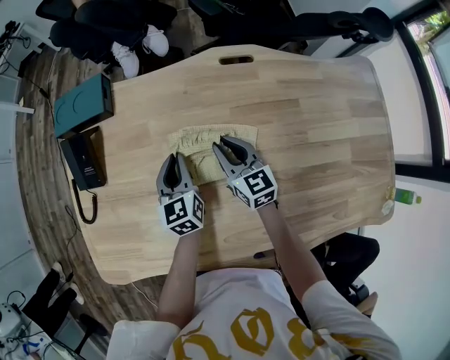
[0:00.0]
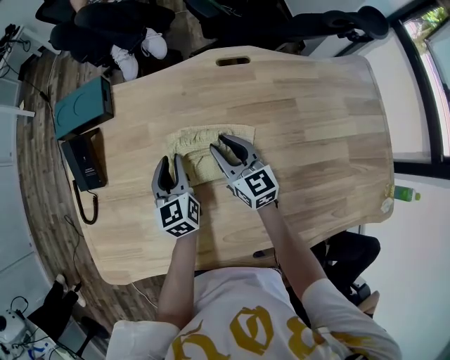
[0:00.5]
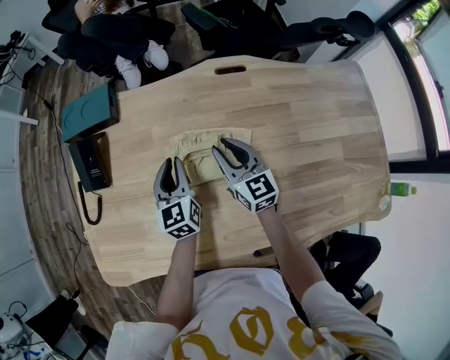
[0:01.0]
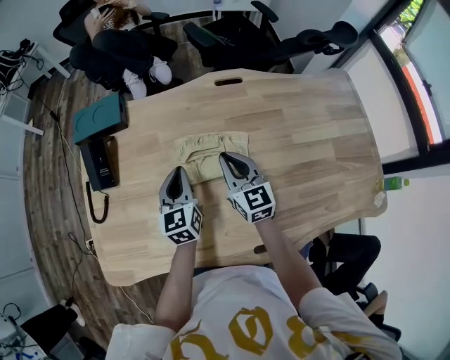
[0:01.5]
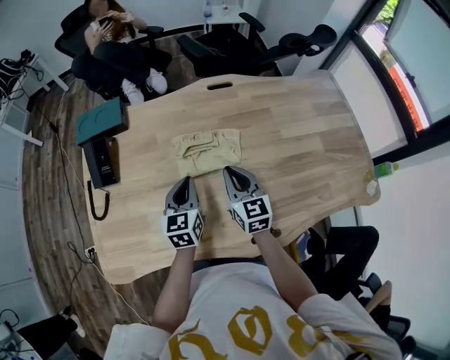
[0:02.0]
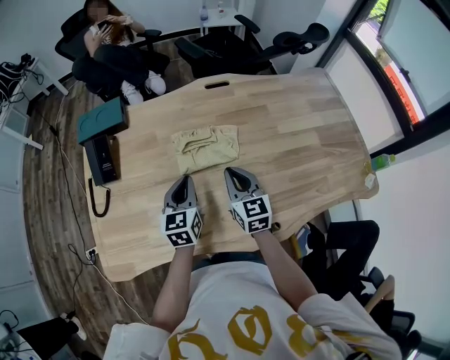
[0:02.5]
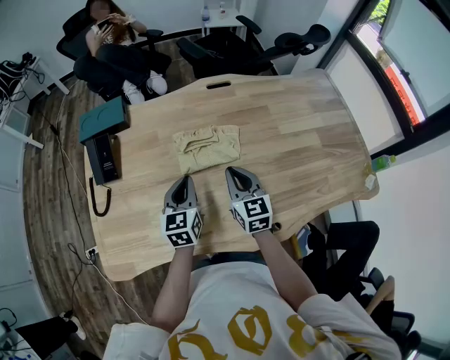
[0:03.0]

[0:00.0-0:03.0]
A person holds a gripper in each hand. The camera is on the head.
0.0 to 1.5 s: The right gripper shifts some 10 cm upward and backward, while the left gripper travels upward by about 5 cm, and opens, then closes again.
1.5 to 3.0 s: The grippers both shift backward by about 10 cm.

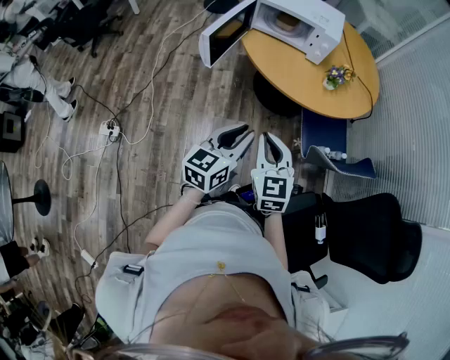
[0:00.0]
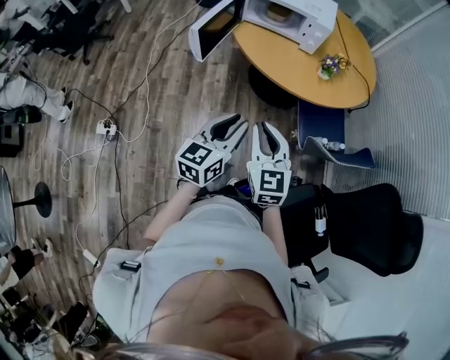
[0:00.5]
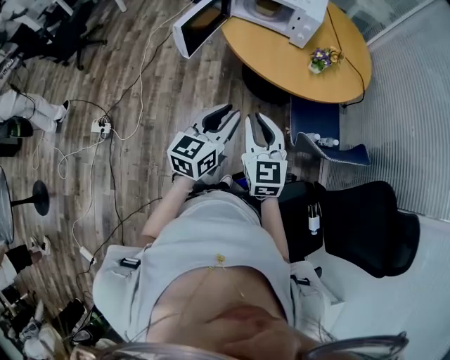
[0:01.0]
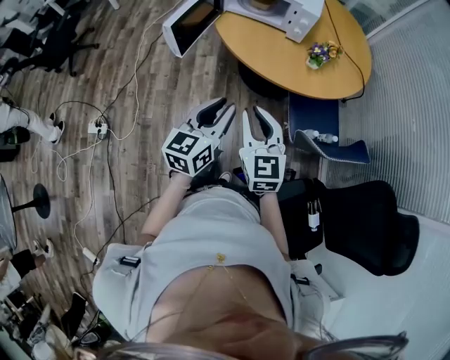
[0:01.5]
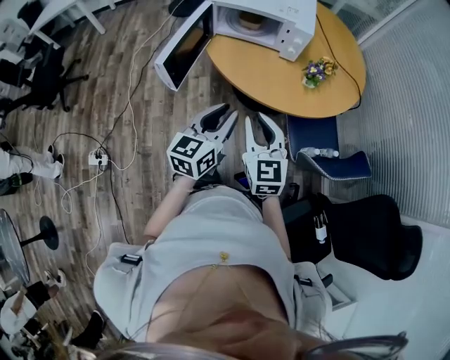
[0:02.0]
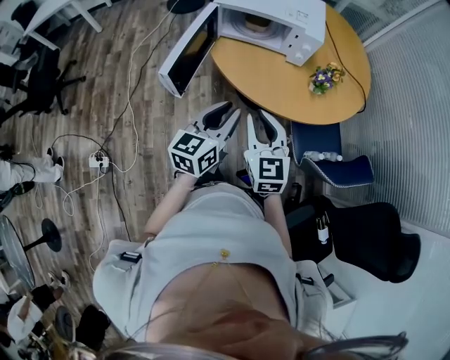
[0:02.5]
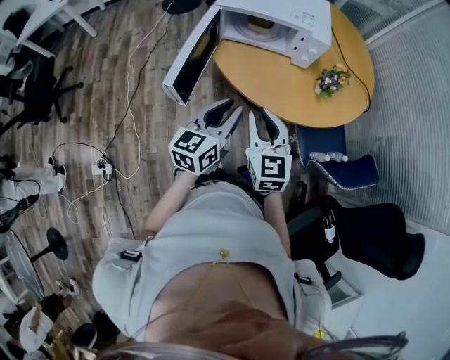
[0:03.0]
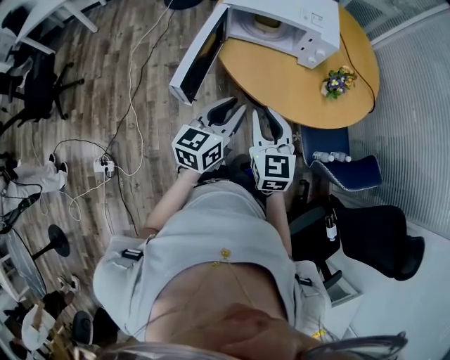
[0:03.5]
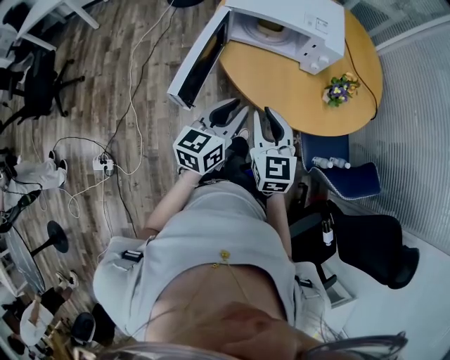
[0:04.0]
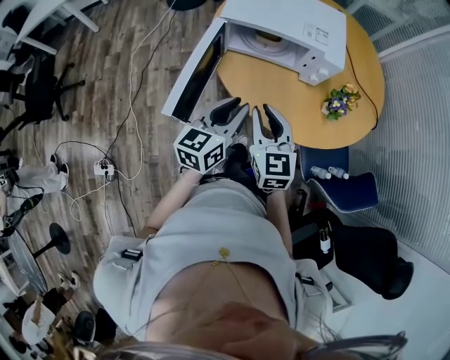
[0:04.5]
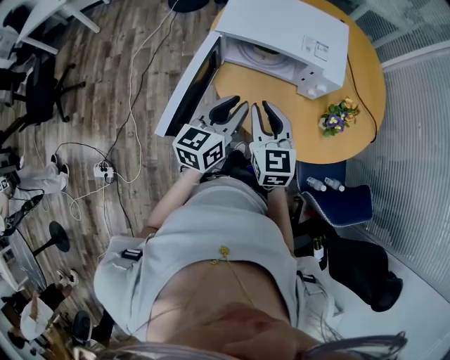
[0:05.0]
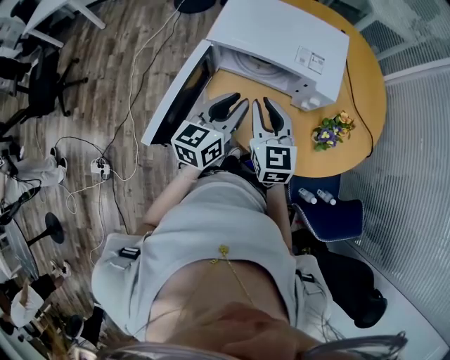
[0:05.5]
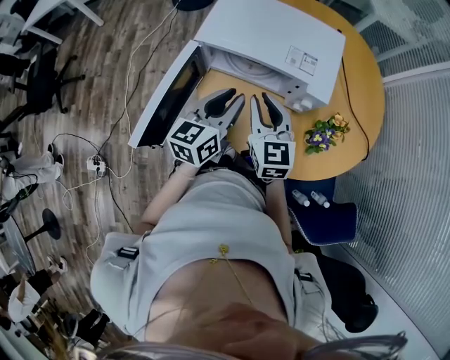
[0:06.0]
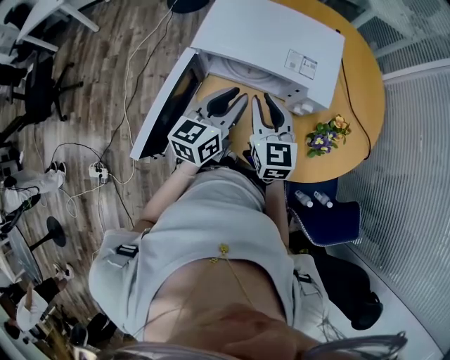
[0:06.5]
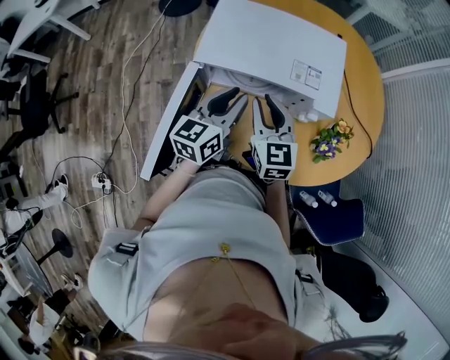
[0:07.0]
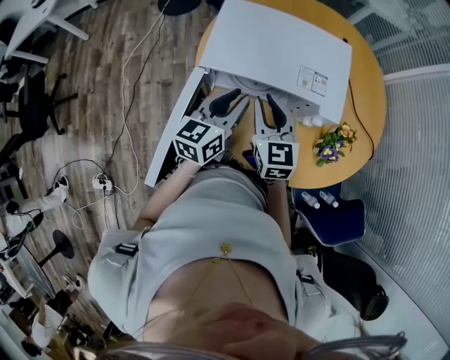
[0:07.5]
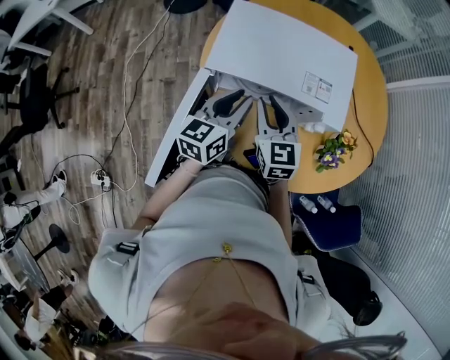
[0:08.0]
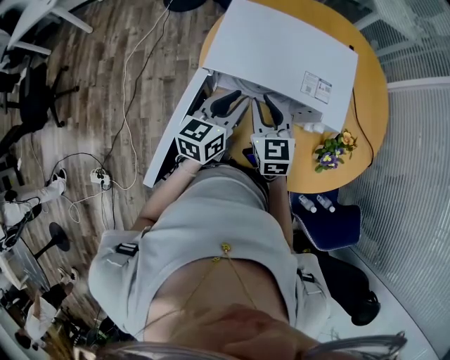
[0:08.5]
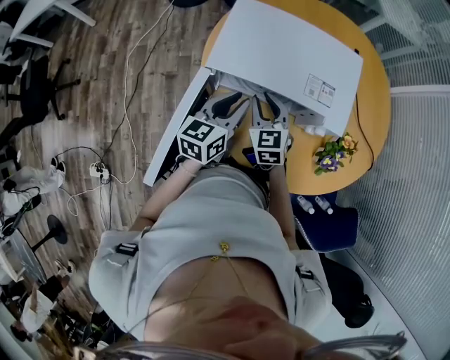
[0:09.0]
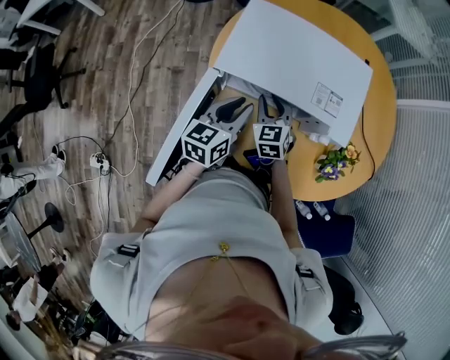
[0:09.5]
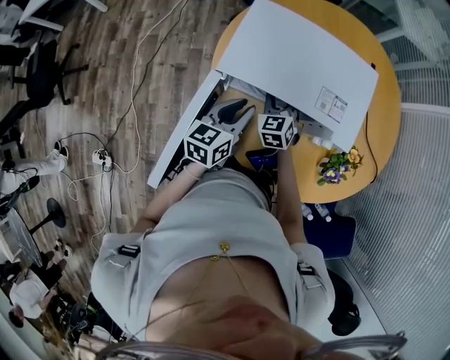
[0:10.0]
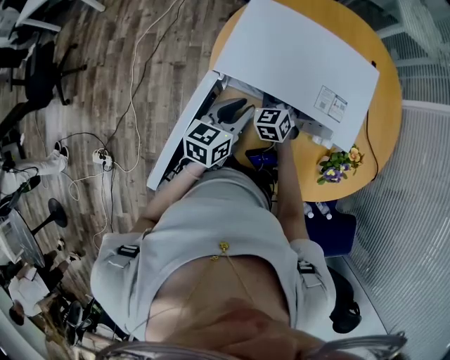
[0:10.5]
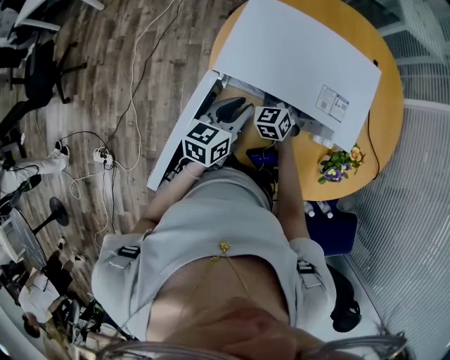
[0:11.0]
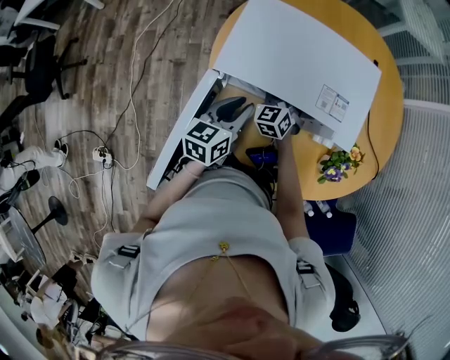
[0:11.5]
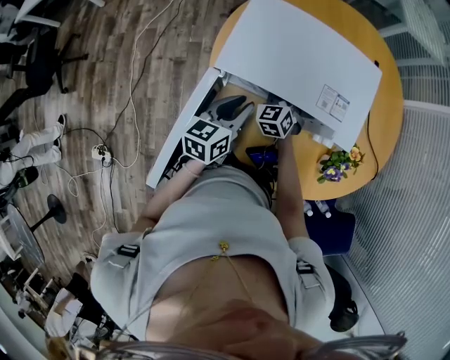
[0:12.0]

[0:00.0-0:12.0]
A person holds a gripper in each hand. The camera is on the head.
0.0 to 2.0 s: The two grippers go some 15 cm forward.
2.0 to 4.0 s: The grippers both shift forward and to the left by roughly 15 cm.
4.0 to 6.0 s: The two grippers go about 20 cm forward.
6.0 to 8.0 s: The grippers both shift forward by approximately 10 cm.
8.0 to 10.0 s: The left gripper is displaced downward by some 5 cm; the right gripper is displaced downward and forward by roughly 15 cm, and rotates approximately 20 degrees.
10.0 to 12.0 s: The right gripper closes its fingers.

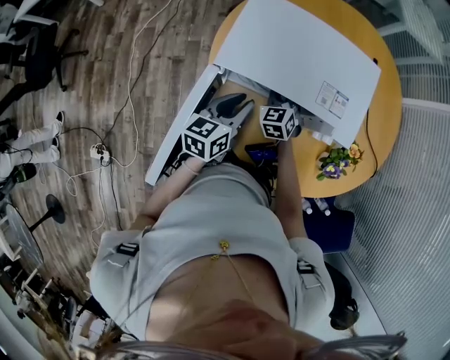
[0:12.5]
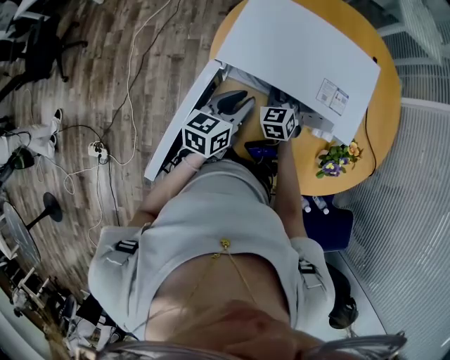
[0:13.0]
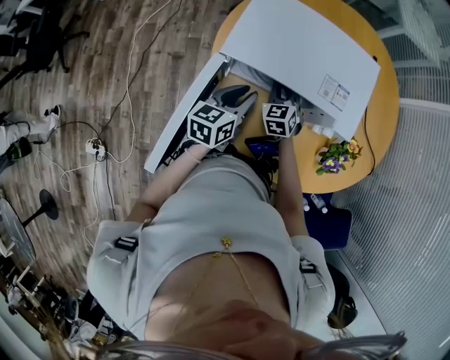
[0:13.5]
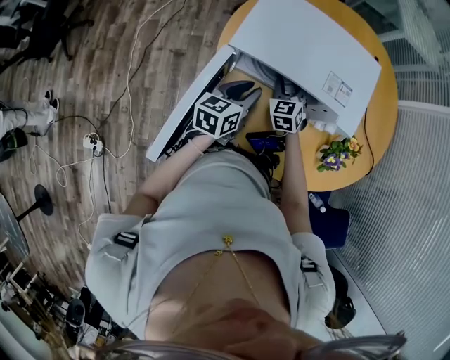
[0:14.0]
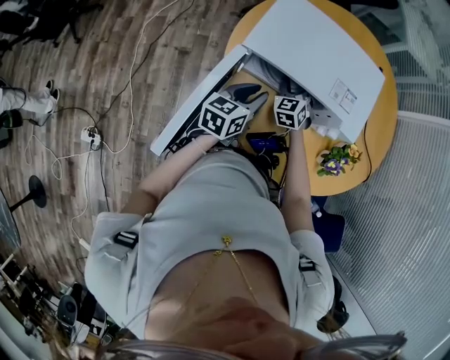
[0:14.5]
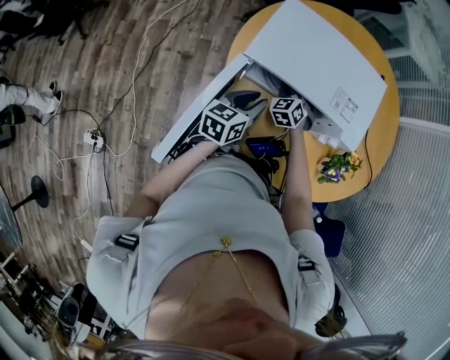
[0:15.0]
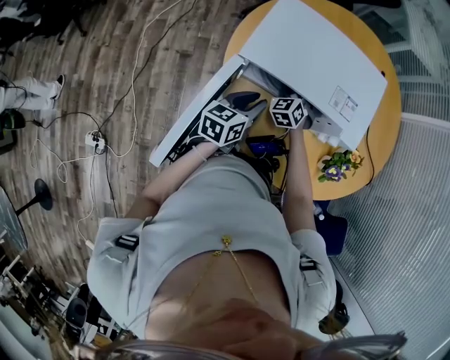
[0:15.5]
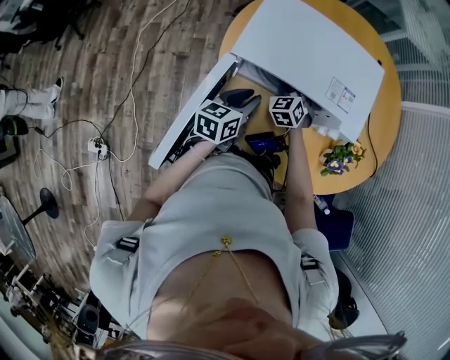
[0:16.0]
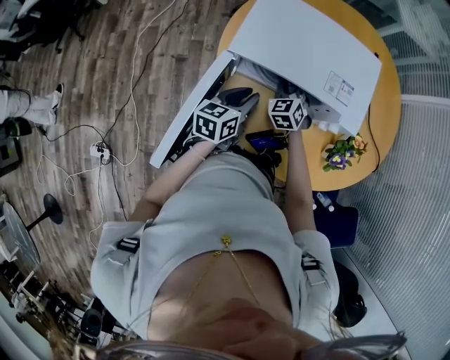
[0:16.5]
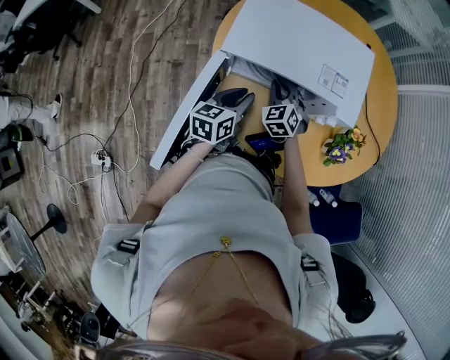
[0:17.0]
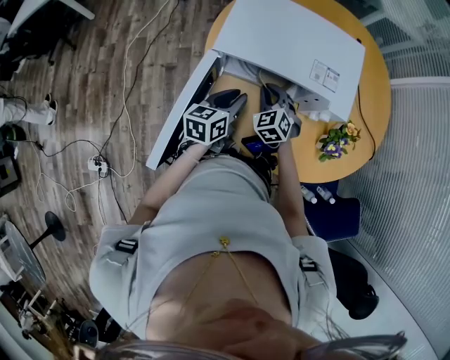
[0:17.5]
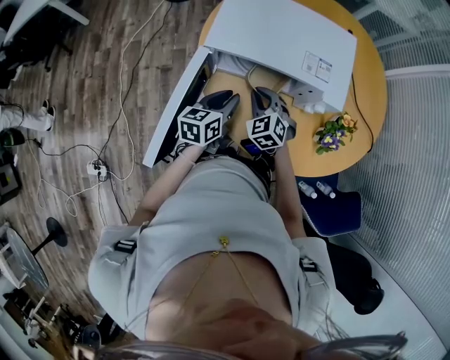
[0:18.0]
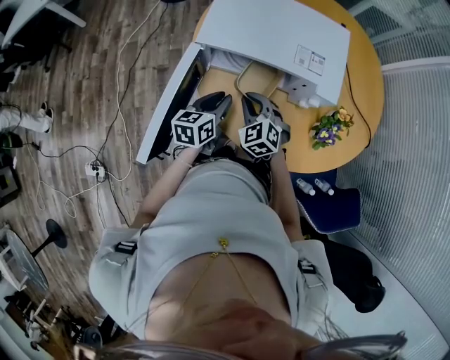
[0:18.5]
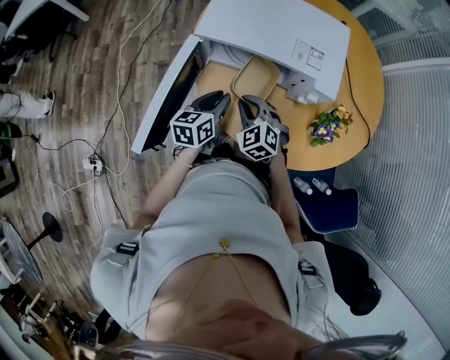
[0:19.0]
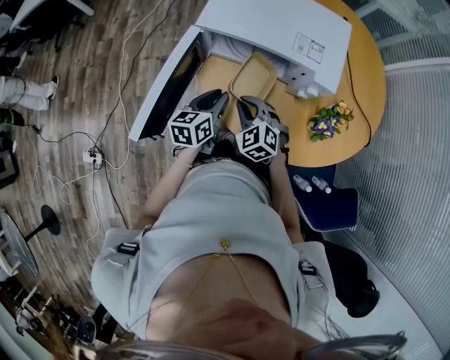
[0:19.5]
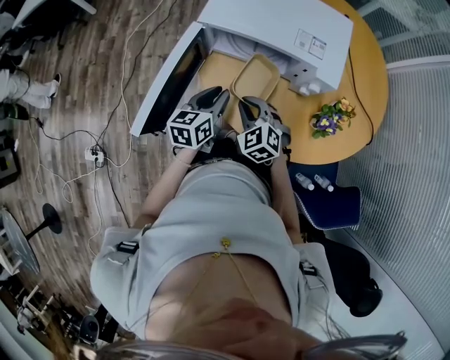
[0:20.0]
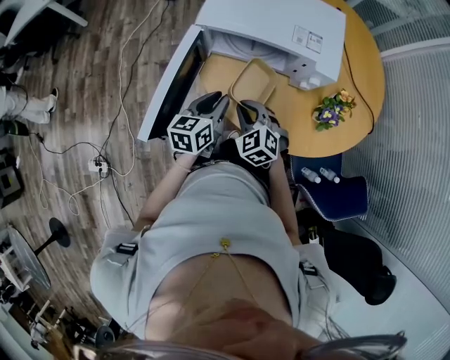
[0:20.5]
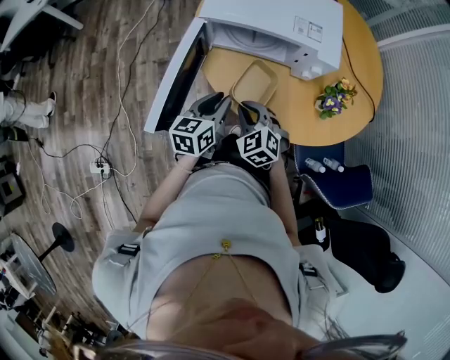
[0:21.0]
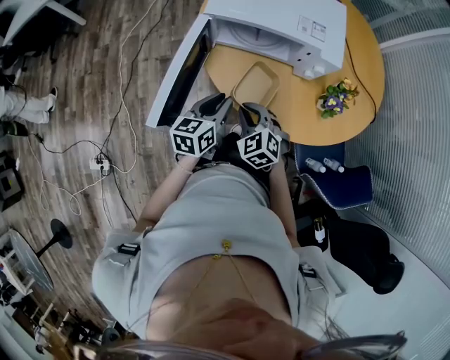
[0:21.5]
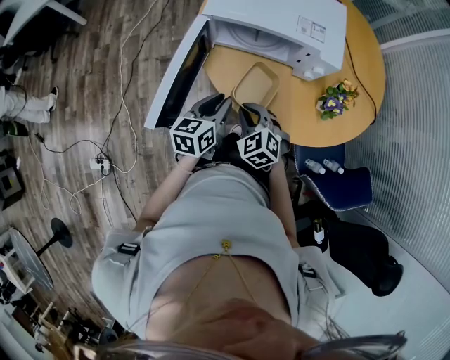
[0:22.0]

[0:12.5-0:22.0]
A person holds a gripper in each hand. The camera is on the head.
12.5 to 14.5 s: The right gripper opens.
14.5 to 16.5 s: The right gripper closes its fingers.
16.5 to 18.0 s: The right gripper shifts roughly 10 cm backward.
18.0 to 20.0 s: The right gripper is displaced backward by roughly 10 cm. Meanwhile the left gripper is displaced backward by roughly 5 cm.
20.0 to 22.0 s: Both grippers move backward, some 5 cm.

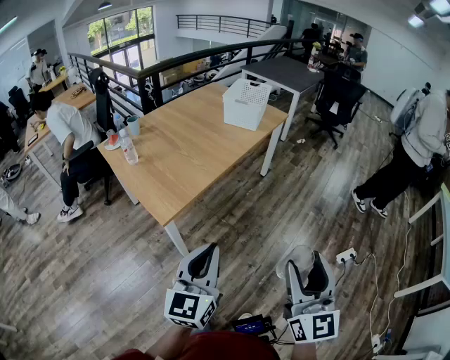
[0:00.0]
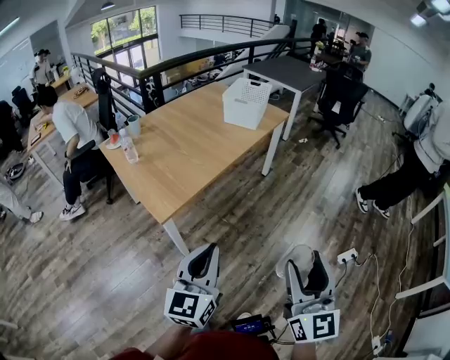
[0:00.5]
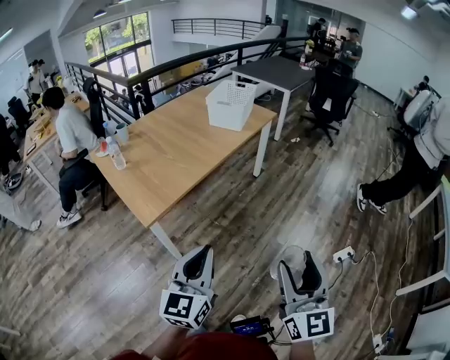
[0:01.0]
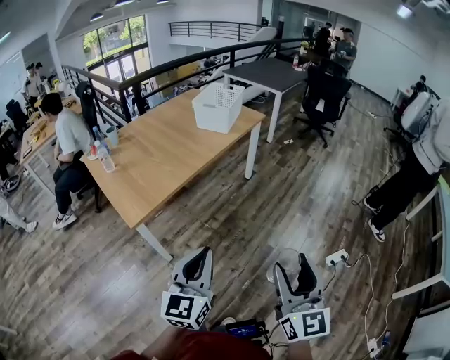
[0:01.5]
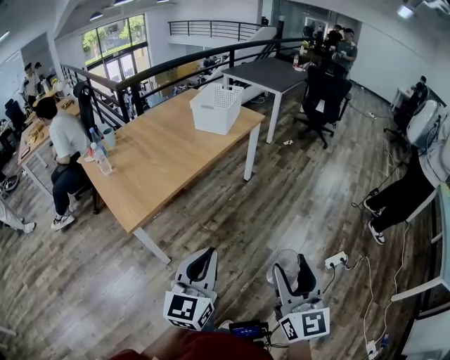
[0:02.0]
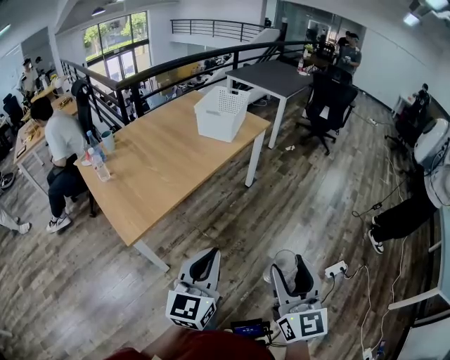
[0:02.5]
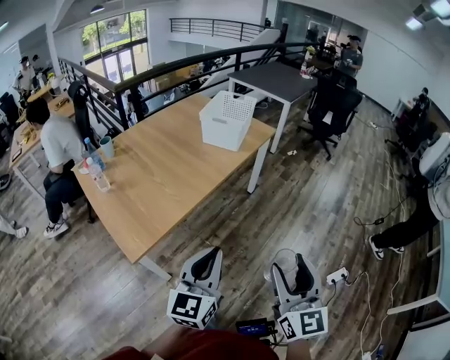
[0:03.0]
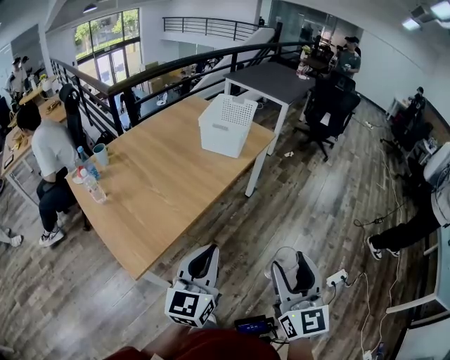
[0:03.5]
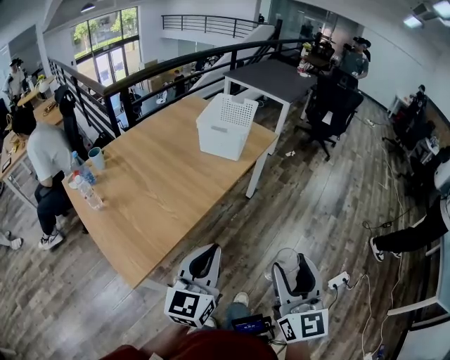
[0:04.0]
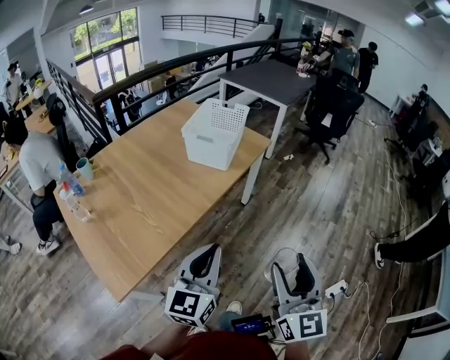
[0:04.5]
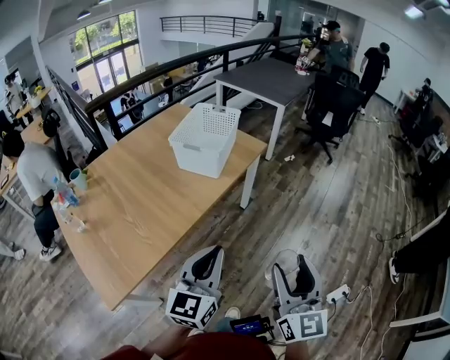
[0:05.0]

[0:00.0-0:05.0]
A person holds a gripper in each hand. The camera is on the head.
0.0 to 2.5 s: The right gripper travels forward and to the right by some 15 cm. Meanwhile the left gripper shifts roughly 15 cm to the right and forward.
2.5 to 5.0 s: Both grippers travel together forward, approximately 30 cm.
